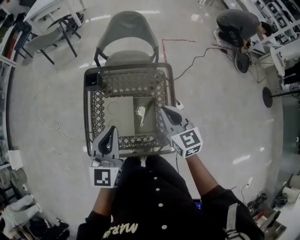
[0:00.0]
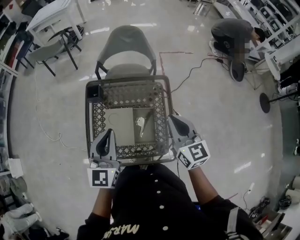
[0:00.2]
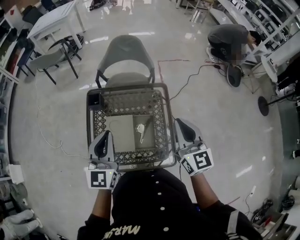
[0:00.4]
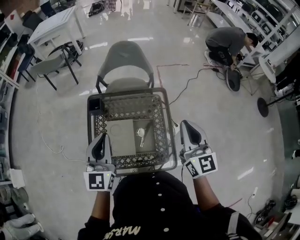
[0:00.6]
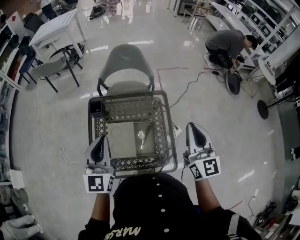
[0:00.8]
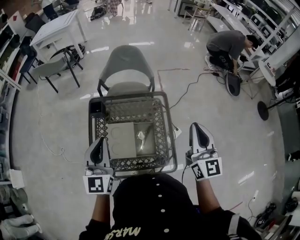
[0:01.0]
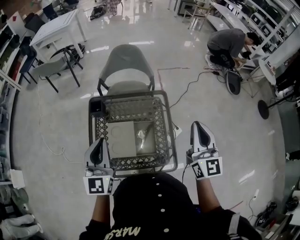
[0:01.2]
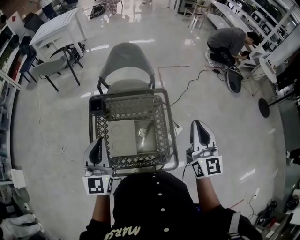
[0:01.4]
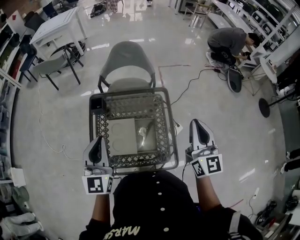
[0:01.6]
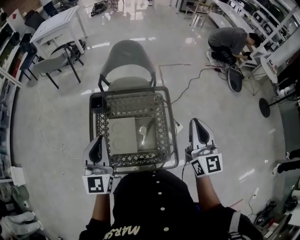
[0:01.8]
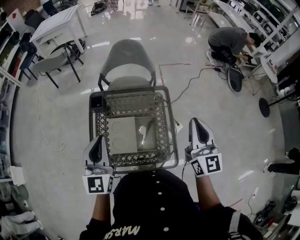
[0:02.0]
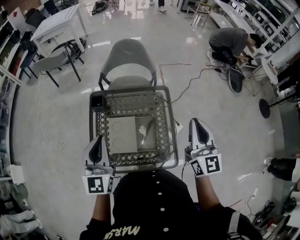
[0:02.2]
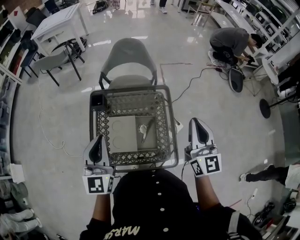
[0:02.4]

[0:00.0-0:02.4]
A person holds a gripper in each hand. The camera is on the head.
0:00.0 to 0:01.2: The left gripper is displaced upward by some 5 cm; the right gripper goes roughly 20 cm upward and to the right, and swivels some 30 degrees.
0:01.2 to 0:02.4: There are only small adjustments of the grippers.

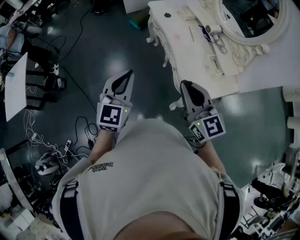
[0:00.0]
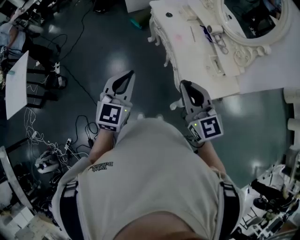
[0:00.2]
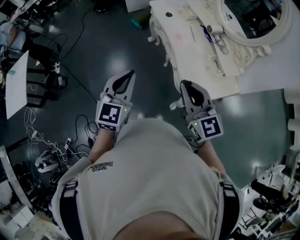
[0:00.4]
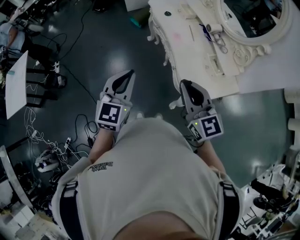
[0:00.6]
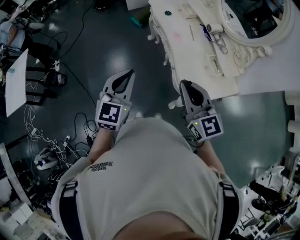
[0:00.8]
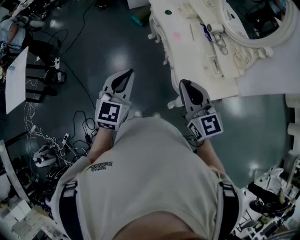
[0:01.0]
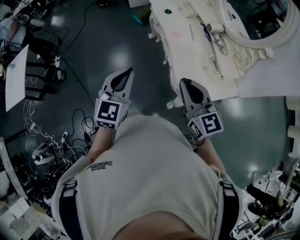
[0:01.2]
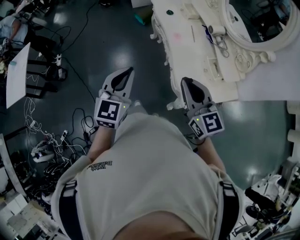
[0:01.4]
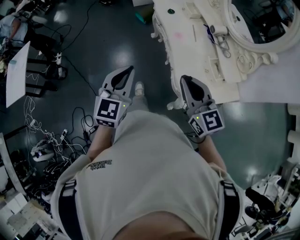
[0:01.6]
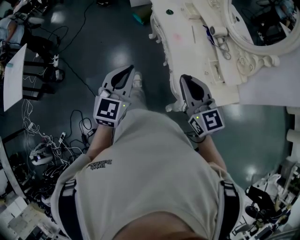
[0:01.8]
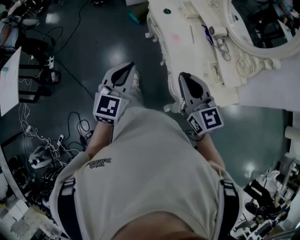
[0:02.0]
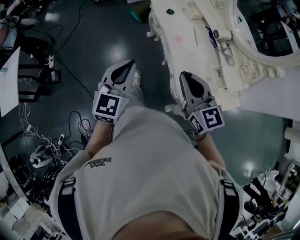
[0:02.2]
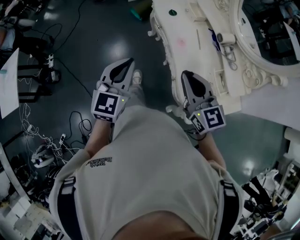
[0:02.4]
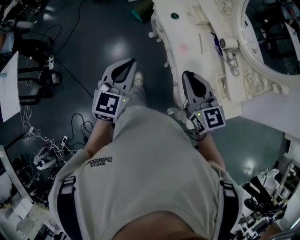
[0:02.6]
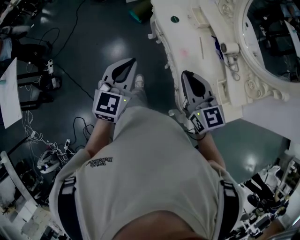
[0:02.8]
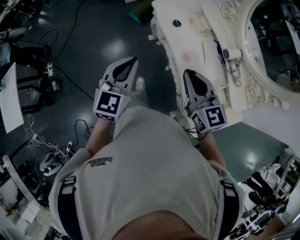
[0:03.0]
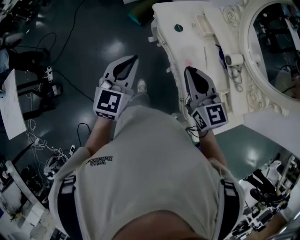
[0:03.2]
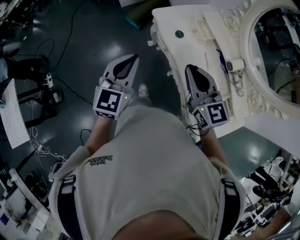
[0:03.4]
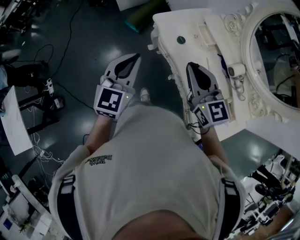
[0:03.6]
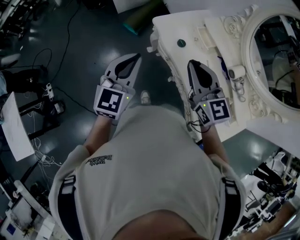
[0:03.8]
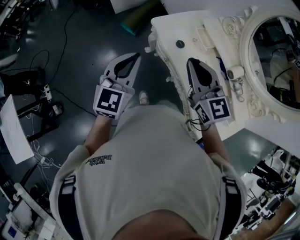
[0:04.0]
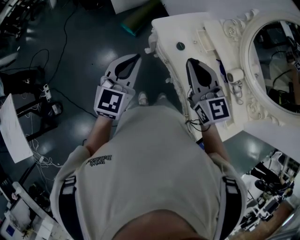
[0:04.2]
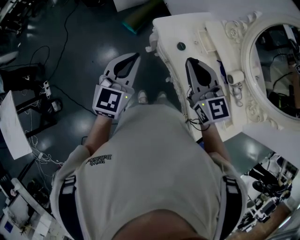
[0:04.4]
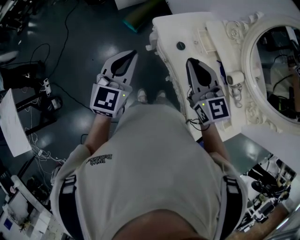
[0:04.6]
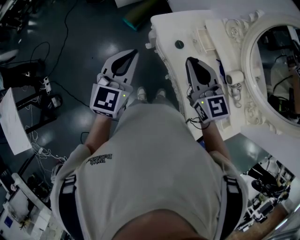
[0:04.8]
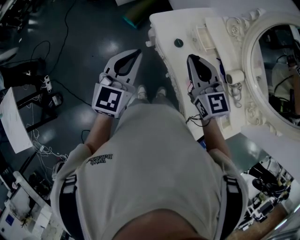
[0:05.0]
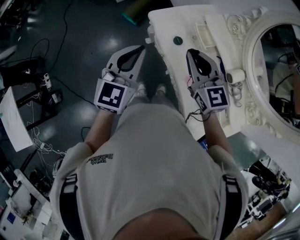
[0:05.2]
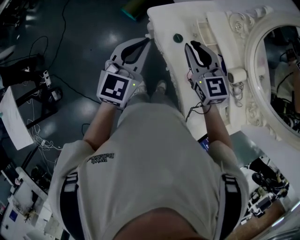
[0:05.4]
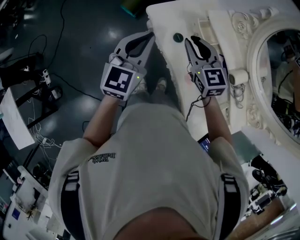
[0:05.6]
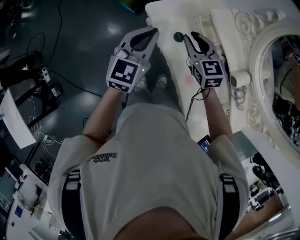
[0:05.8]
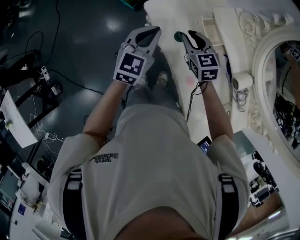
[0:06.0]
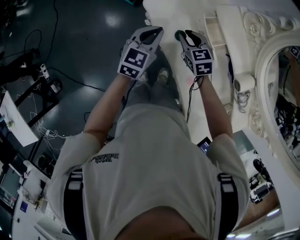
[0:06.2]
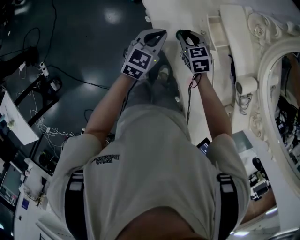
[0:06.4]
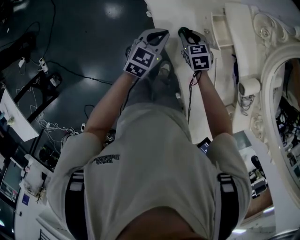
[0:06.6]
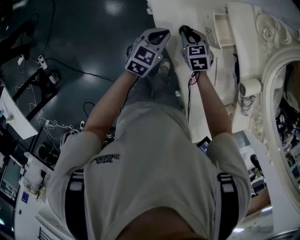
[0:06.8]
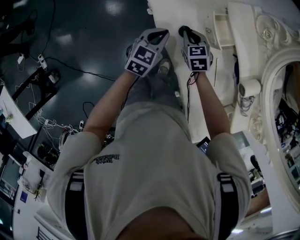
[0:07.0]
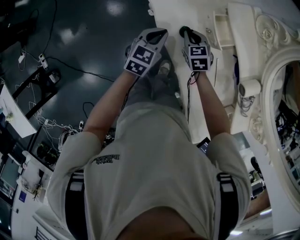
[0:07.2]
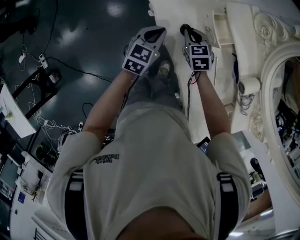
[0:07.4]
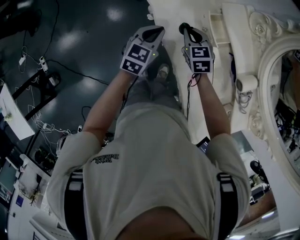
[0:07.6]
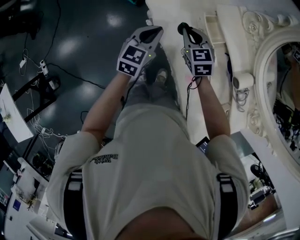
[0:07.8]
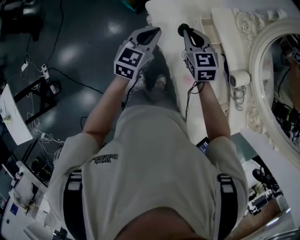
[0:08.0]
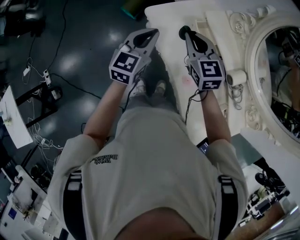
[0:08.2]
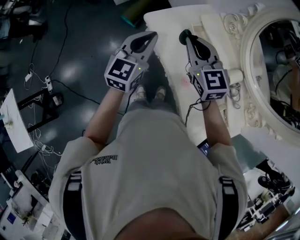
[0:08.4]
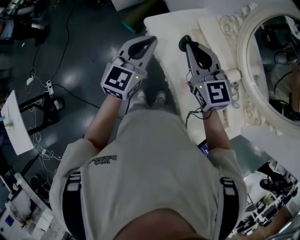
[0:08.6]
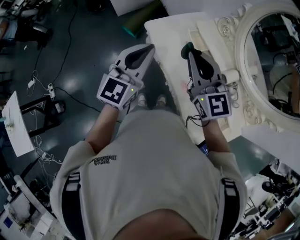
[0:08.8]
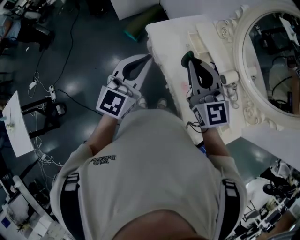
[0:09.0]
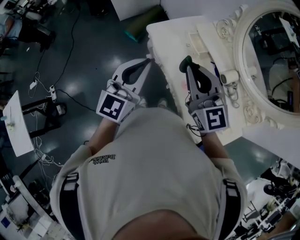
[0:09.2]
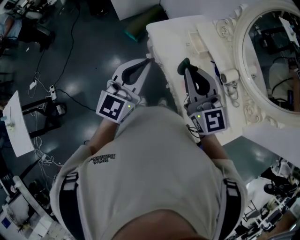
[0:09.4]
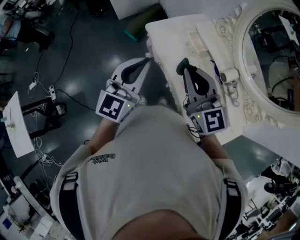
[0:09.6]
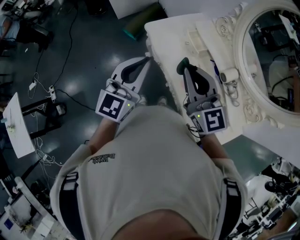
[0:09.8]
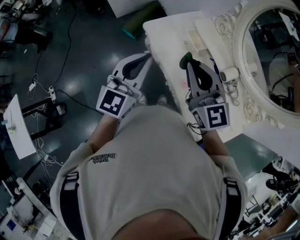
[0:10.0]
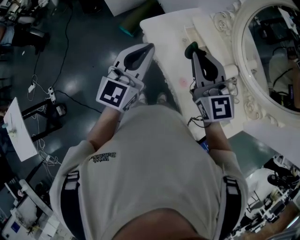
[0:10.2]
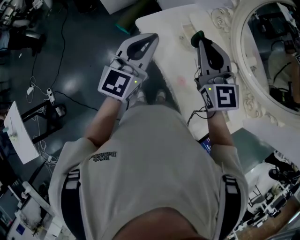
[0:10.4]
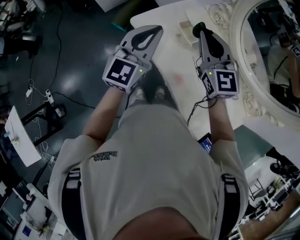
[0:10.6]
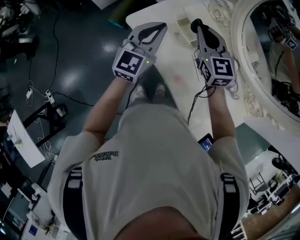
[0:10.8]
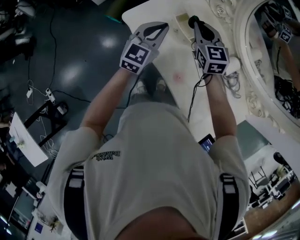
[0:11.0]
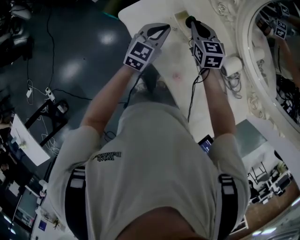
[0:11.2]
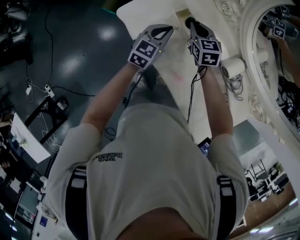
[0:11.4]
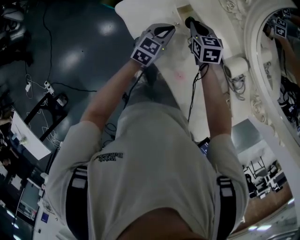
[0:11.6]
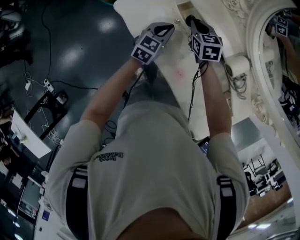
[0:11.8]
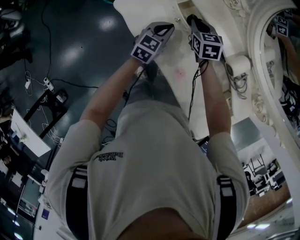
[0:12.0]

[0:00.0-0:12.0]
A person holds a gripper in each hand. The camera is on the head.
0:00.0 to 0:01.6: The right gripper goes some 10 cm to the right and forward, while the left gripper travels to the right by some 5 cm.
0:01.6 to 0:03.0: Both grippers move forward, about 30 cm.
0:03.0 to 0:04.4: Both grippers travel together forward, roughly 20 cm.
0:04.4 to 0:06.0: The right gripper moves downward and forward, approximately 30 cm, swivels some 30 degrees, and opens up; the left gripper heads forward, downward and to the right, covering roughly 25 cm.
0:06.0 to 0:07.6: The right gripper shifts some 5 cm downward, and closes its fingers, while the left gripper is displaced downward by some 10 cm.
0:07.6 to 0:09.0: The grippers both shift upward and backward by approximately 40 cm. The left gripper angles its fingers upward, by approximately 30 degrees. Meanwhile the right gripper angles its fingers upward, by some 40 degrees.
0:09.0 to 0:10.4: The two grippers go some 10 cm forward.
0:10.4 to 0:12.0: Both grippers travel together downward and forward, about 40 cm. The right gripper tilts its fingers about 40 degrees downward; the left gripper rotates roughly 30 degrees.

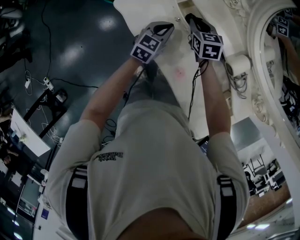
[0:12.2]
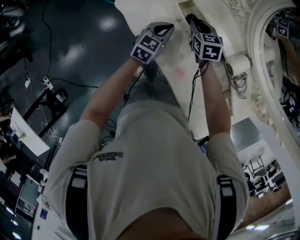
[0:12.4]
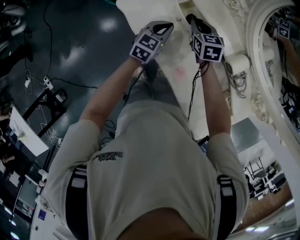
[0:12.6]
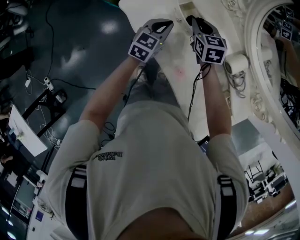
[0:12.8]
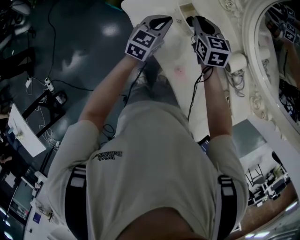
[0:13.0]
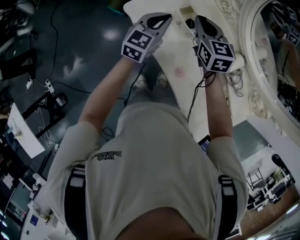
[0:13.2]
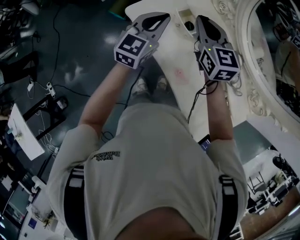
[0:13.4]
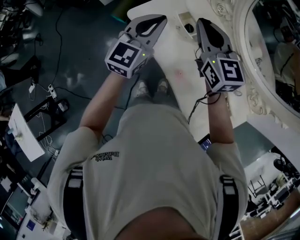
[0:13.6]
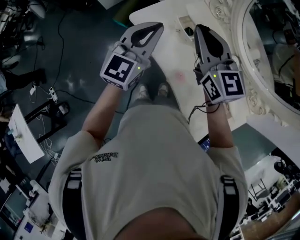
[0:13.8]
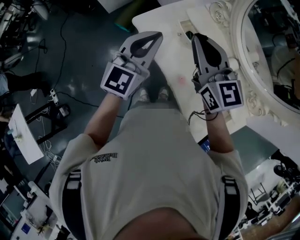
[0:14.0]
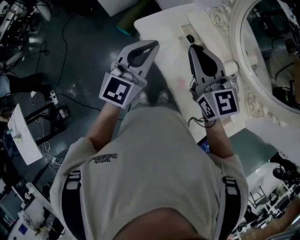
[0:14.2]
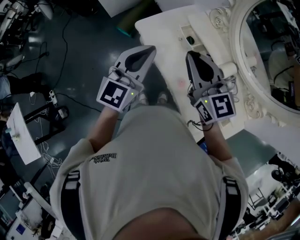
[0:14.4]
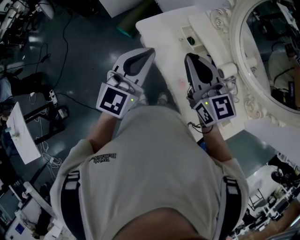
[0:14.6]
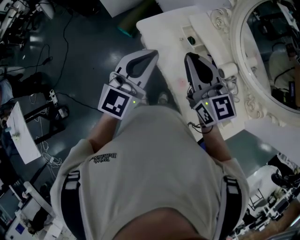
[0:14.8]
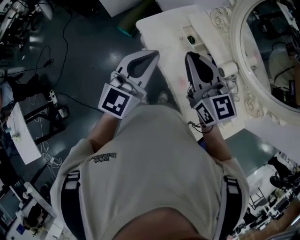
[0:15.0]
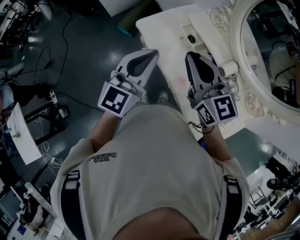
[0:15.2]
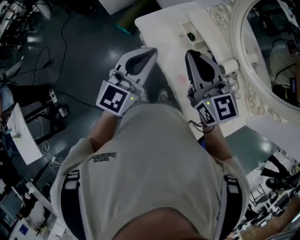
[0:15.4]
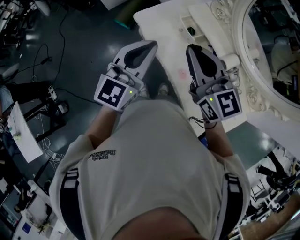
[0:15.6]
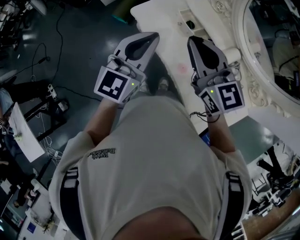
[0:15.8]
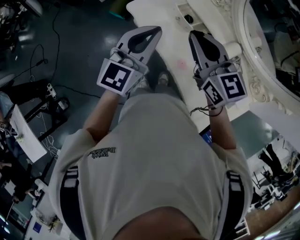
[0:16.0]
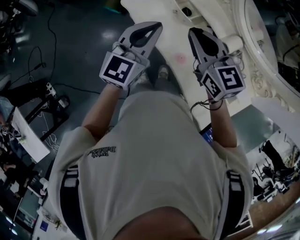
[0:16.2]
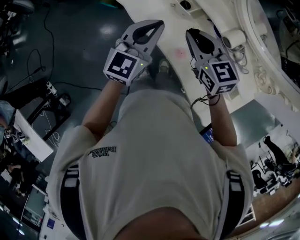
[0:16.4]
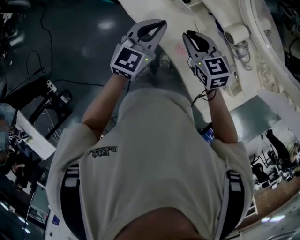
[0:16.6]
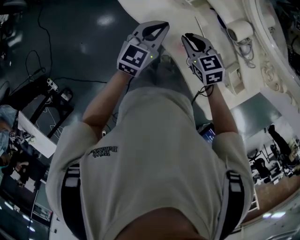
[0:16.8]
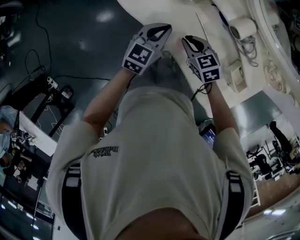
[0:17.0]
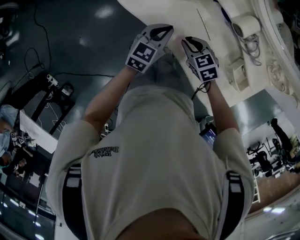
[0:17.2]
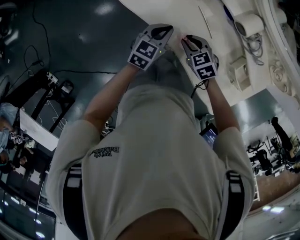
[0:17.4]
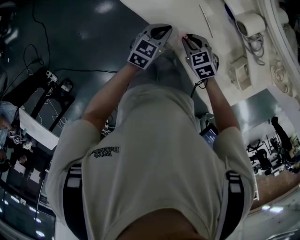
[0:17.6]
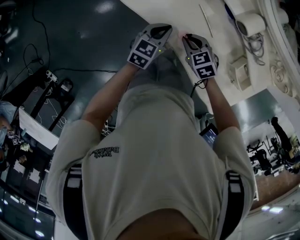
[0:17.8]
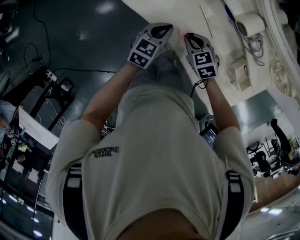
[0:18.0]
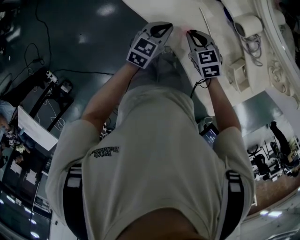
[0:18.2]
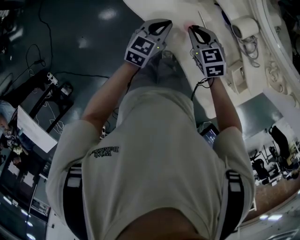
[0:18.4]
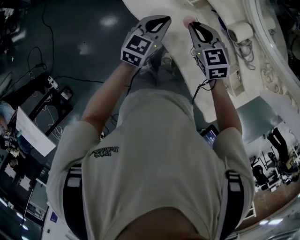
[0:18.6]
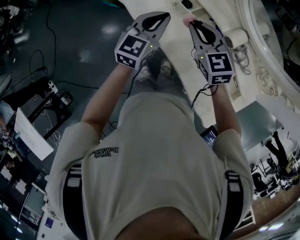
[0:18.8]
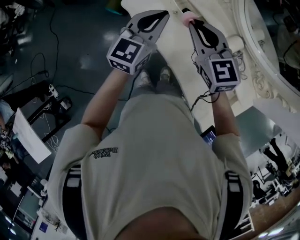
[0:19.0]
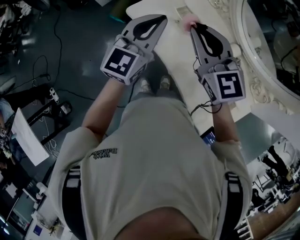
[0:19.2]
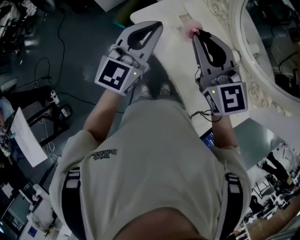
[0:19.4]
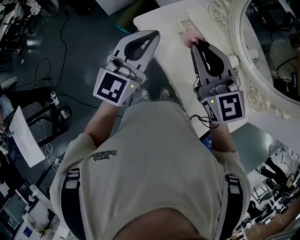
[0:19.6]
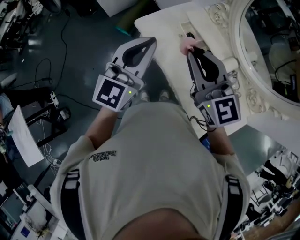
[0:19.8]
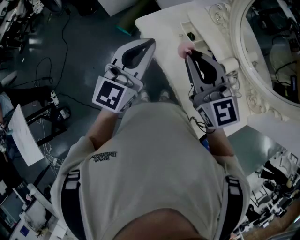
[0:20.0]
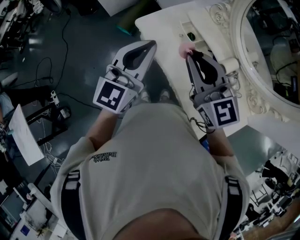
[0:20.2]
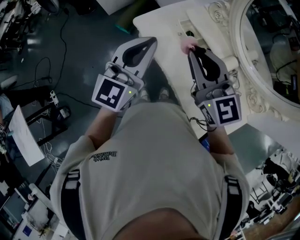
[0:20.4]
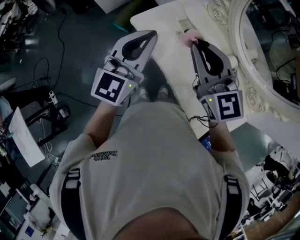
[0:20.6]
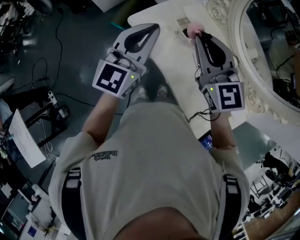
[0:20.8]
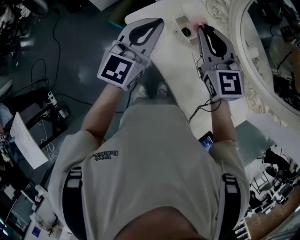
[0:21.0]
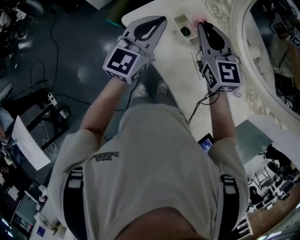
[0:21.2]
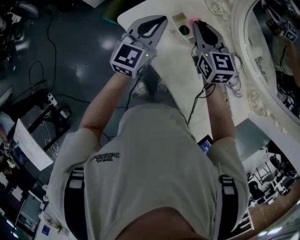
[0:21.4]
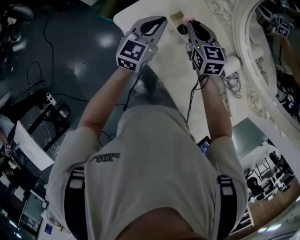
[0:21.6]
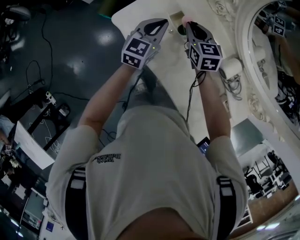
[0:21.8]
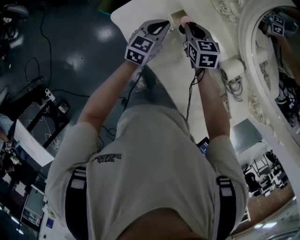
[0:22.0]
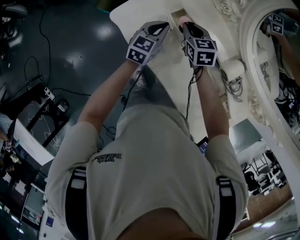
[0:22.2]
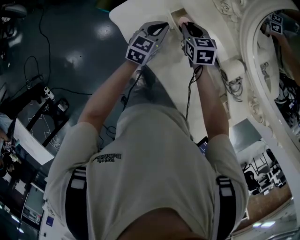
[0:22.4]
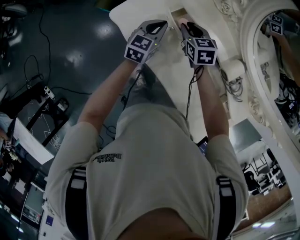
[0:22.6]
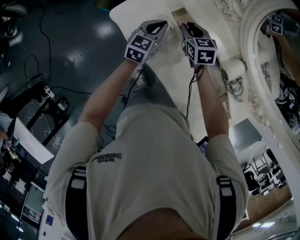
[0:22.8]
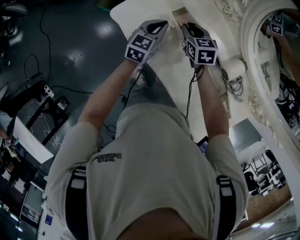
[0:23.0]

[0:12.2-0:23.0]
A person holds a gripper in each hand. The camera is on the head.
0:12.2 to 0:13.8: The left gripper moves upward, approximately 30 cm, and turns by some 30 degrees, while the right gripper moves upward and backward, about 35 cm, and tips its fingers upward by approximately 40 degrees.
0:13.8 to 0:15.2: The two grippers go about 10 cm backward.
0:15.2 to 0:16.8: Both grippers travel together downward, roughly 25 cm. The right gripper tips its fingers downward by roughly 40 degrees. Meanwhile the left gripper swivels some 30 degrees.
0:16.8 to 0:18.4: The right gripper travels downward and back again, approximately 15 cm each way. Meanwhile the left gripper goes some 10 cm downward.
0:18.4 to 0:20.0: The grippers both shift upward by about 35 cm. The left gripper tilts its fingers about 30 degrees upward; the right gripper tilts its fingers approximately 40 degrees upward.
0:20.0 to 0:21.4: The two grippers go about 25 cm forward and downward. The right gripper rotates approximately 20 degrees.
0:21.4 to 0:23.0: The grippers both shift downward by roughly 20 cm. The right gripper changes its angle by approximately 30 degrees. Meanwhile the left gripper rotates about 20 degrees.
